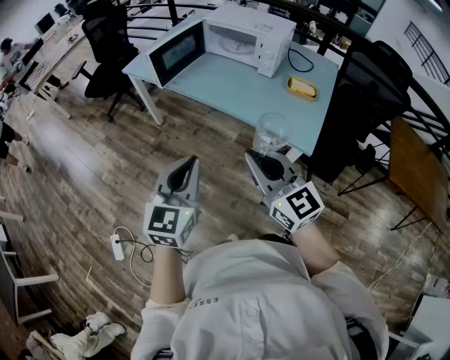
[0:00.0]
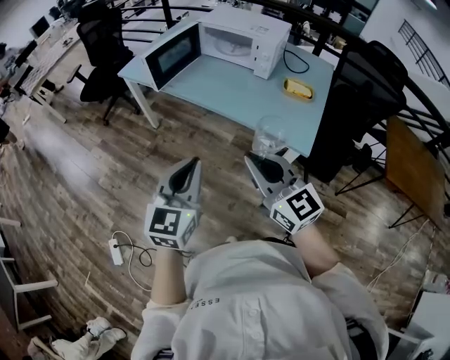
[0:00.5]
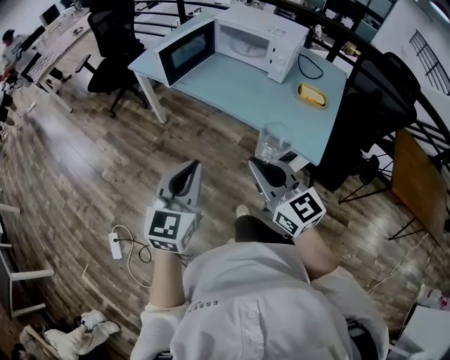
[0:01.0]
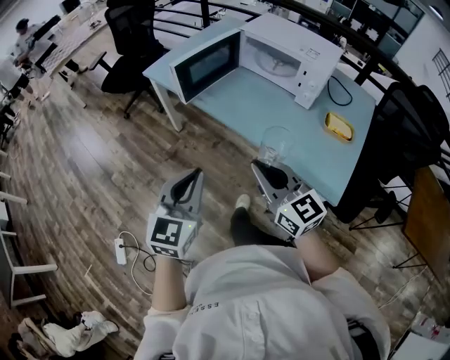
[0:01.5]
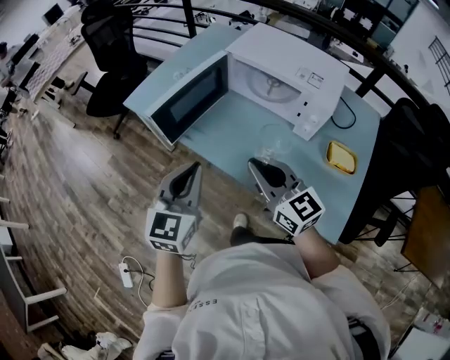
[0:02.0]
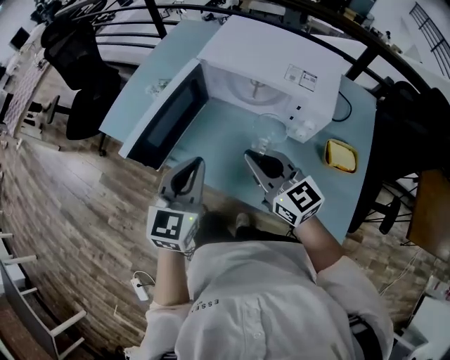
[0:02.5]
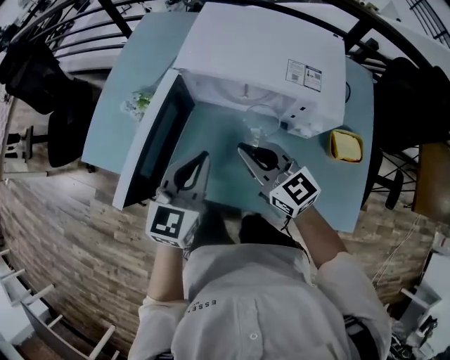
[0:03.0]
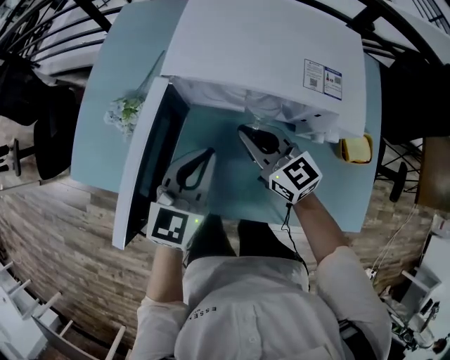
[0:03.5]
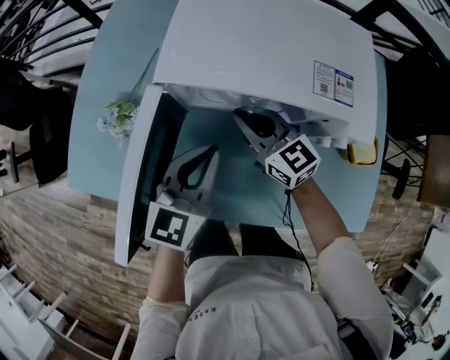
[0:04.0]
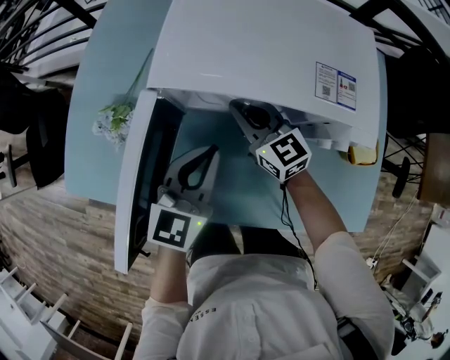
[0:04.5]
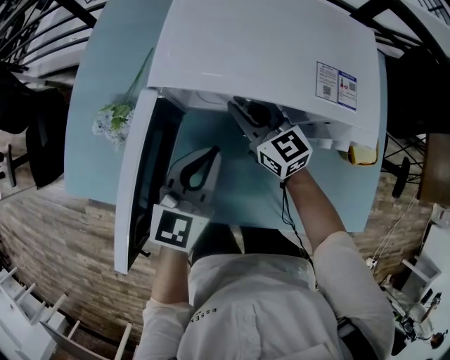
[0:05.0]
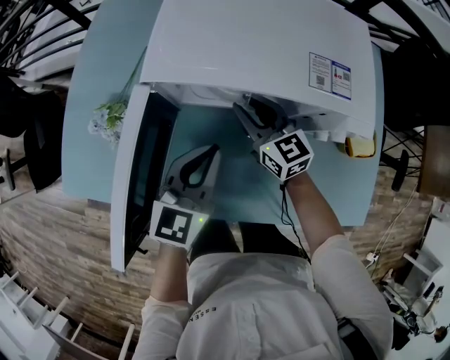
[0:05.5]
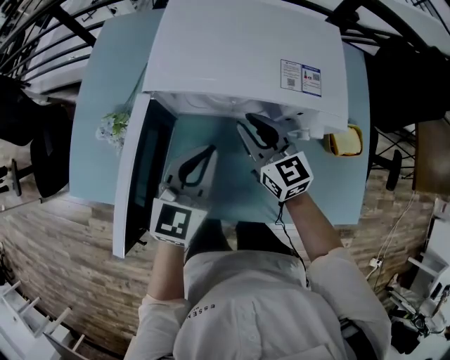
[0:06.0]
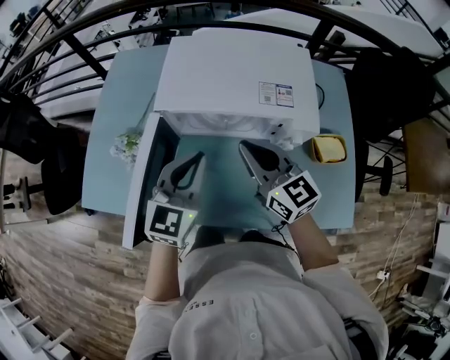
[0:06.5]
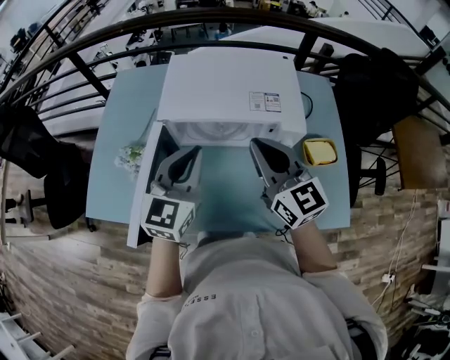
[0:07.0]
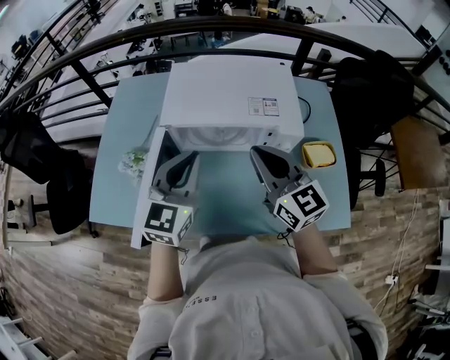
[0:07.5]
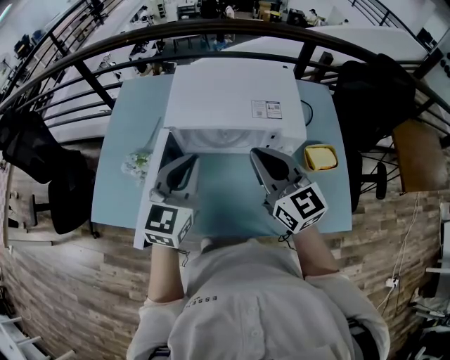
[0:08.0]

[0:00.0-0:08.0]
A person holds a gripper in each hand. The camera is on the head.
0:00.0 to 0:02.0: Both grippers move forward, approximately 35 cm.
0:02.0 to 0:04.0: The left gripper changes place by roughly 35 cm, and swivels roughly 30 degrees, while the right gripper moves approximately 40 cm.
0:04.0 to 0:06.0: The right gripper heads to the right, covering approximately 5 cm, and opens up.
0:06.0 to 0:08.0: The left gripper is displaced upward by about 15 cm, while the right gripper goes approximately 20 cm upward and backward, and closes up.

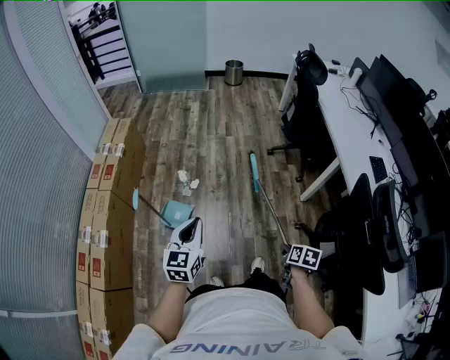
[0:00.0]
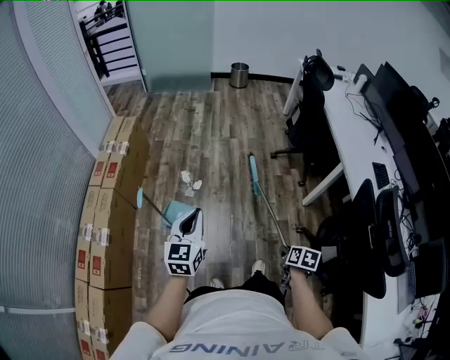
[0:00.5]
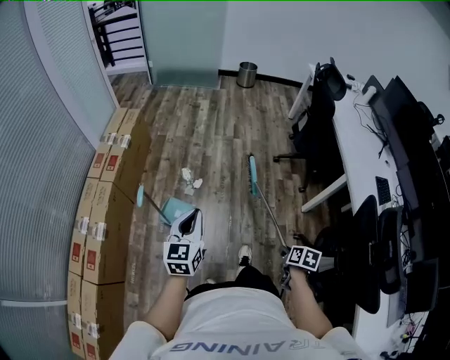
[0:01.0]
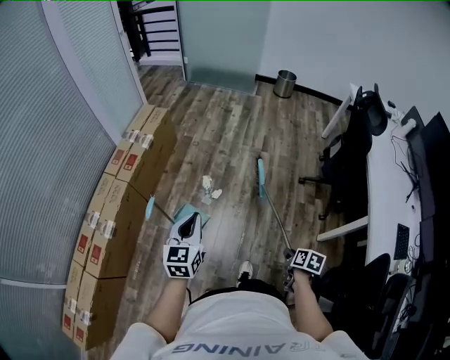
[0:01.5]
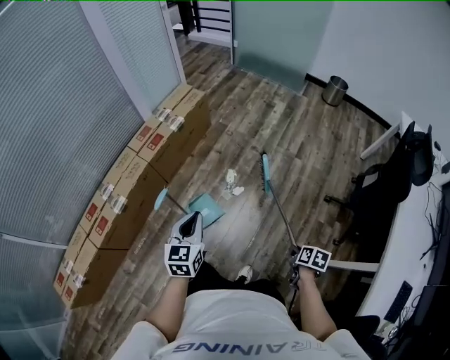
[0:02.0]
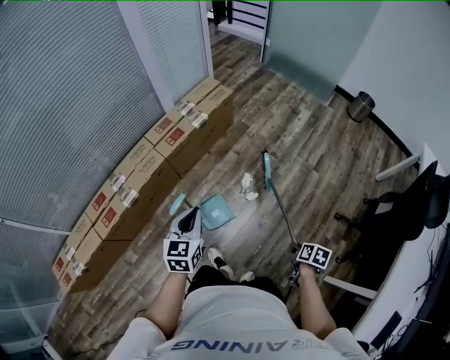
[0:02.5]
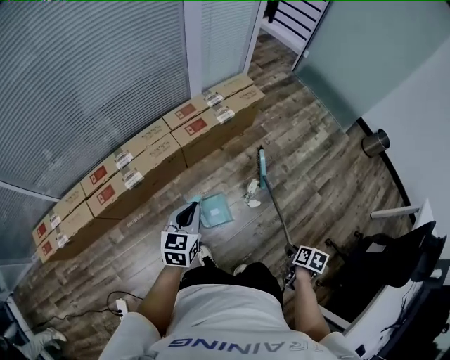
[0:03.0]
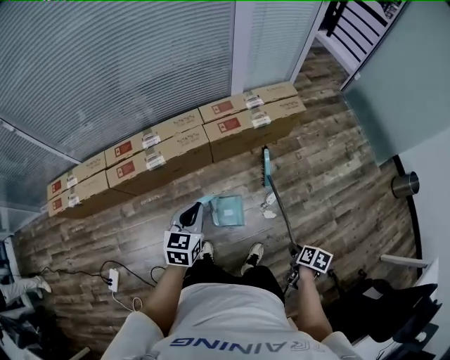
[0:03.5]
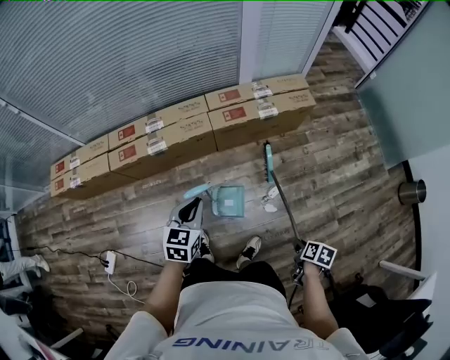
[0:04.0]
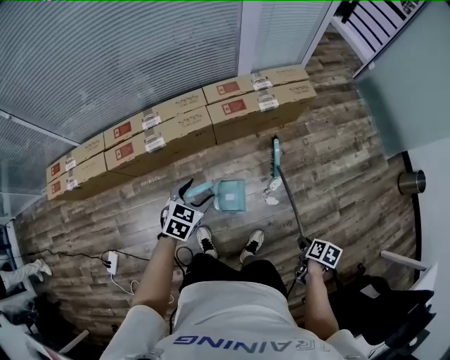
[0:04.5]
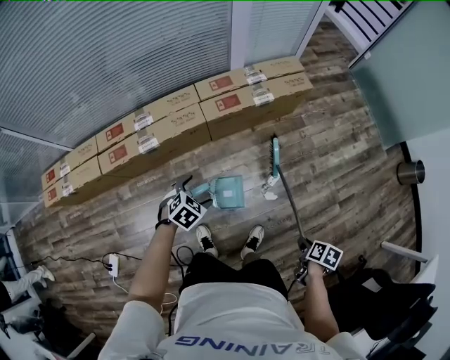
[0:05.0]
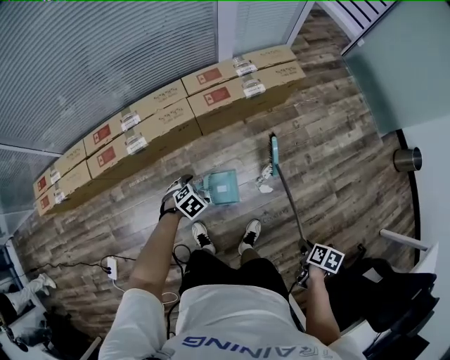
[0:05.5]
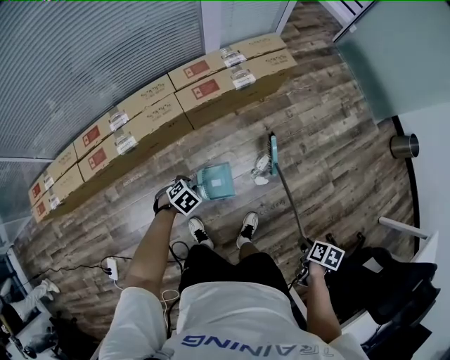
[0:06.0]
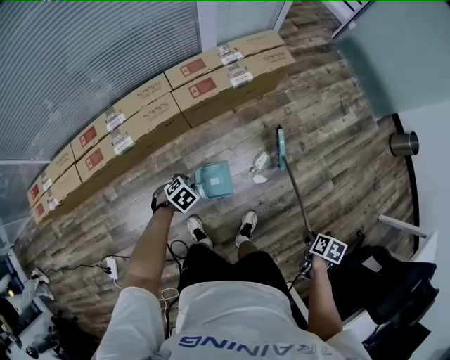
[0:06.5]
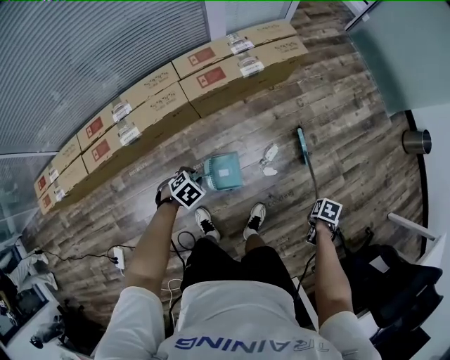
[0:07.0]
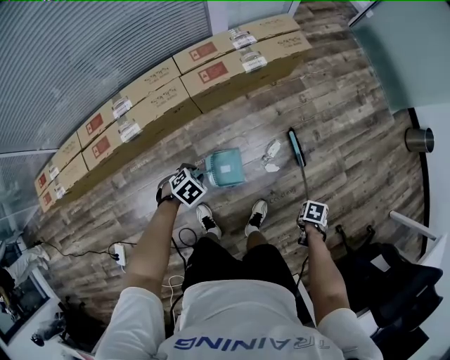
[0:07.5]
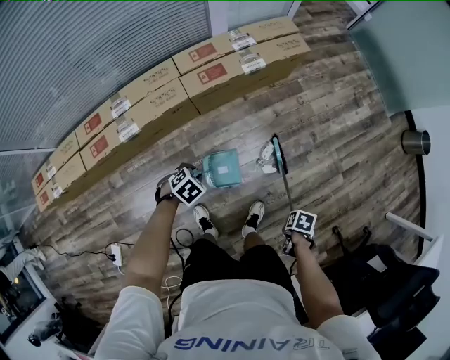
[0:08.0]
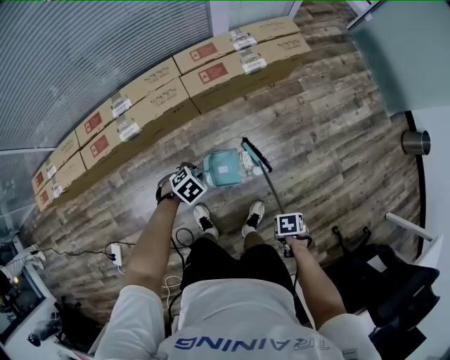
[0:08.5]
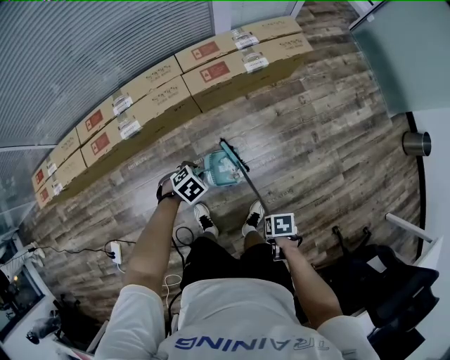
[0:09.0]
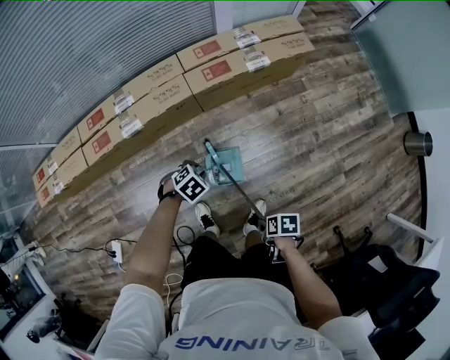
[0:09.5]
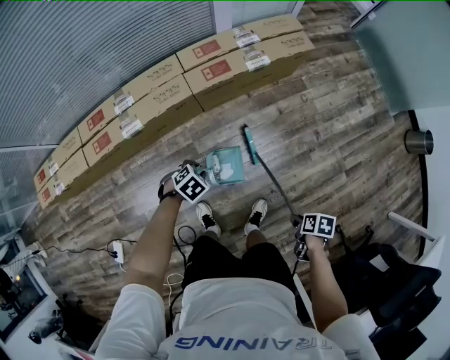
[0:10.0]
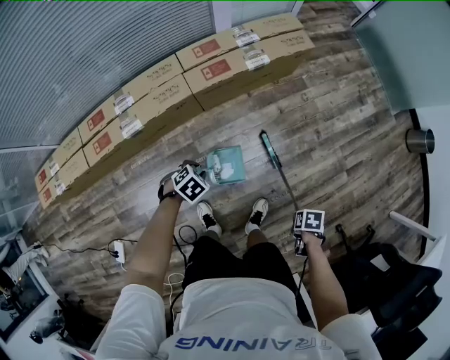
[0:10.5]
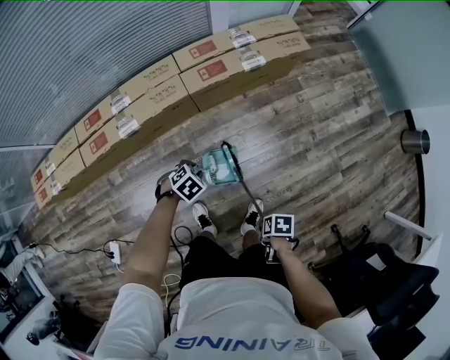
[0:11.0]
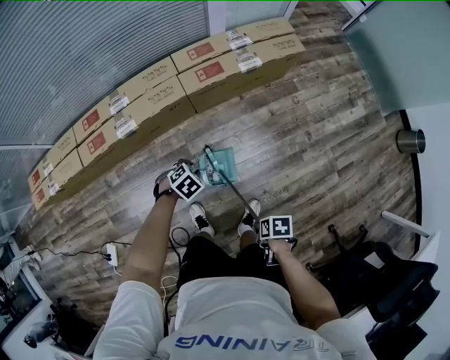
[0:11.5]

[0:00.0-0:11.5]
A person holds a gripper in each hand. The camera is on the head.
0:00.0 to 0:02.0: The left gripper changes place by about 25 cm, and swivels about 40 degrees.
0:02.0 to 0:04.0: The left gripper changes place by approximately 20 cm, and changes its angle by roughly 40 degrees.
0:04.0 to 0:06.0: The left gripper shifts about 25 cm downward, angles its fingers downward, by approximately 40 degrees, and opens, then closes again.

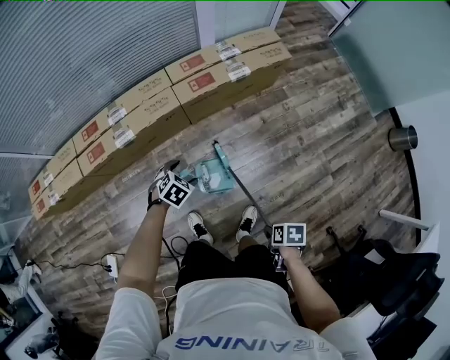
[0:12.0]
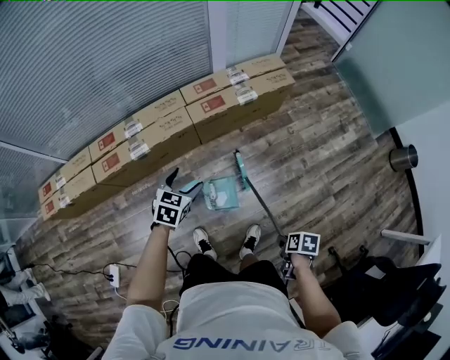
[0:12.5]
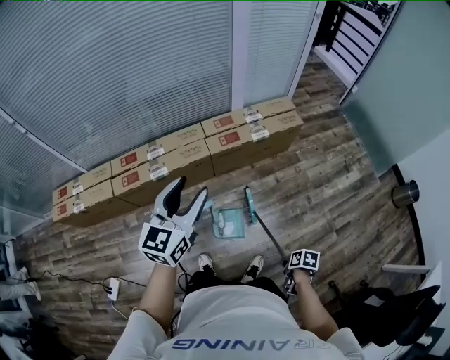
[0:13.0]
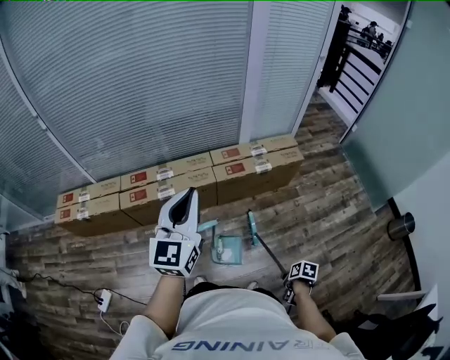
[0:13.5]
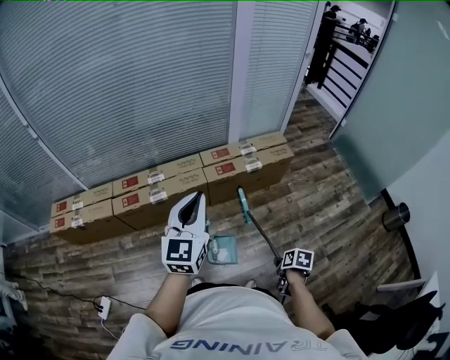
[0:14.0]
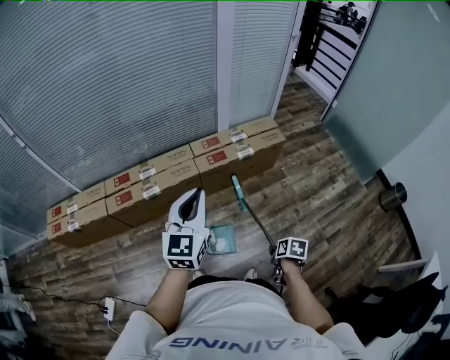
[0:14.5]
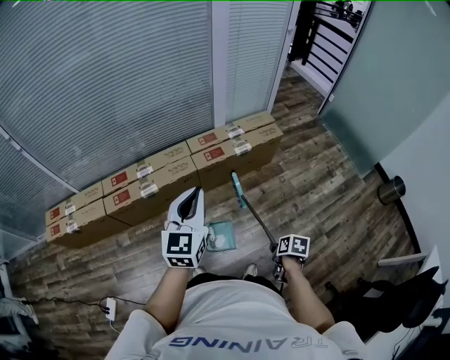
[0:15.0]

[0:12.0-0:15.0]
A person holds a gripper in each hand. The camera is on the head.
0:12.0 to 0:13.5: The left gripper is displaced upward by approximately 50 cm, angles its fingers upward, by approximately 70 degrees, and closes its fingers.
0:13.5 to 0:15.0: The left gripper heads downward, covering approximately 10 cm.

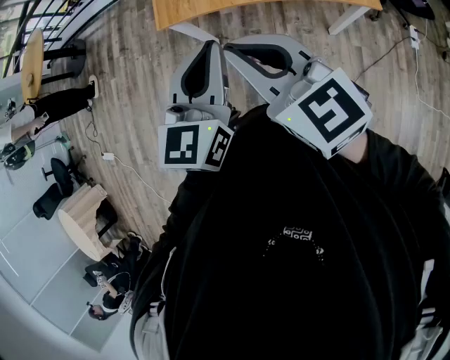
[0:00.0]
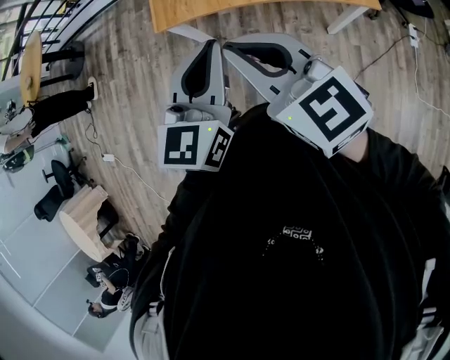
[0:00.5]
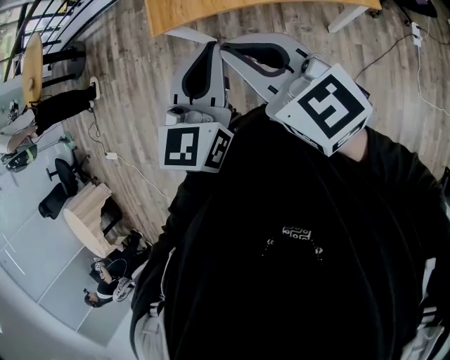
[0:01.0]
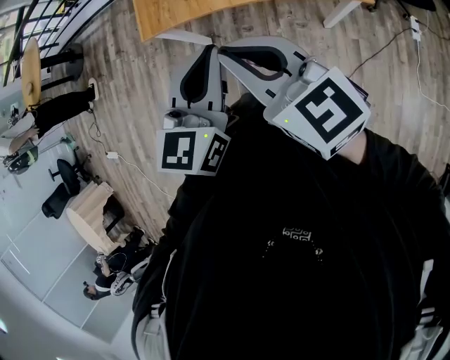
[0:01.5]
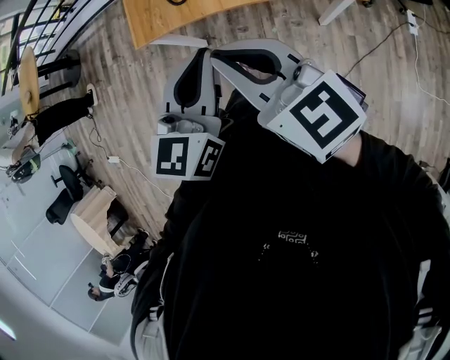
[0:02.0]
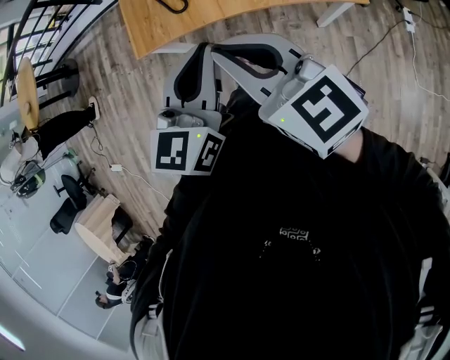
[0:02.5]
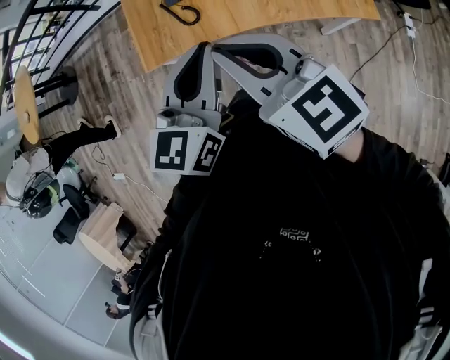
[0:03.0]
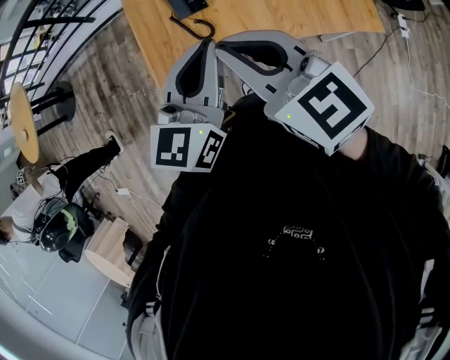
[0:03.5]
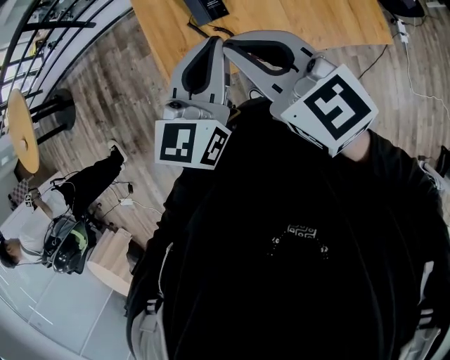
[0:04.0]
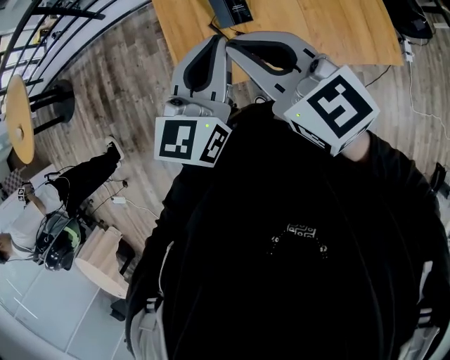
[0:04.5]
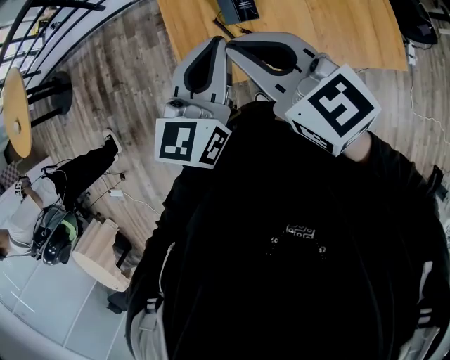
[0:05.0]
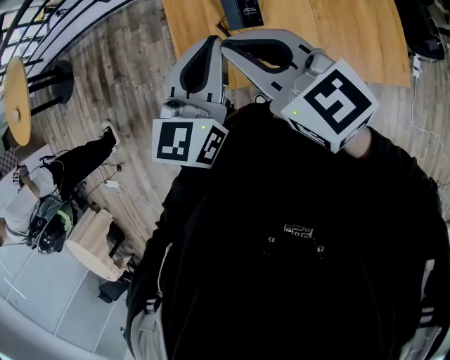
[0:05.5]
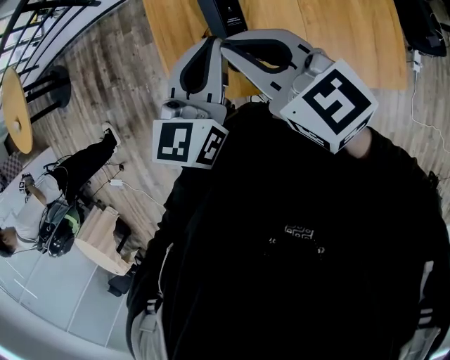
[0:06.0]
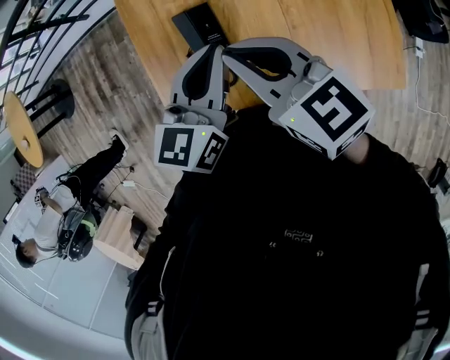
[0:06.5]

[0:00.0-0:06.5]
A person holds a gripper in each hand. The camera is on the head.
0:00.0 to 0:02.0: The grippers both shift to the right by some 10 cm.
0:02.0 to 0:04.5: The grippers both shift forward and to the left by approximately 35 cm.
0:04.5 to 0:06.5: The grippers both shift to the right, forward and downward by approximately 20 cm.
